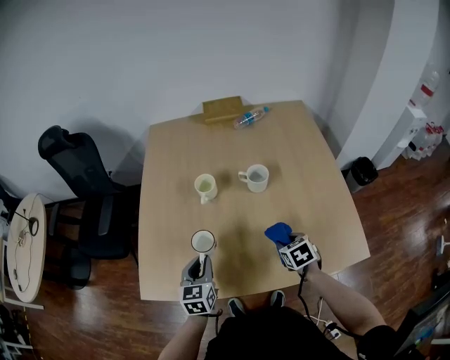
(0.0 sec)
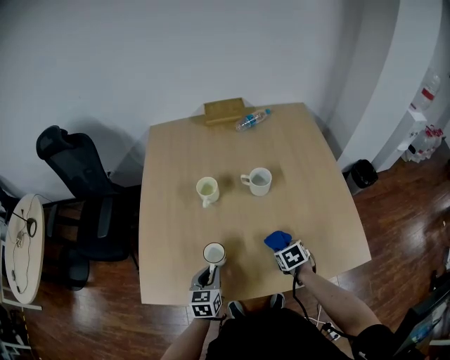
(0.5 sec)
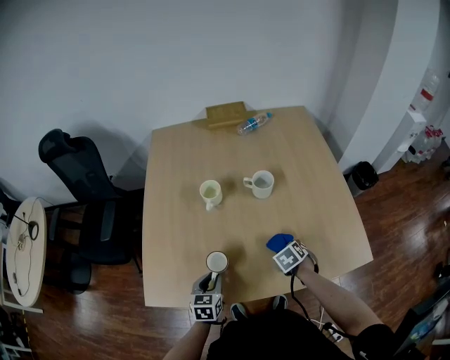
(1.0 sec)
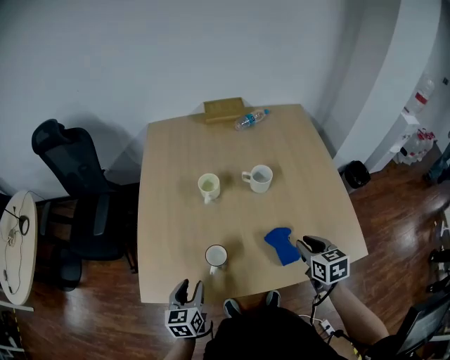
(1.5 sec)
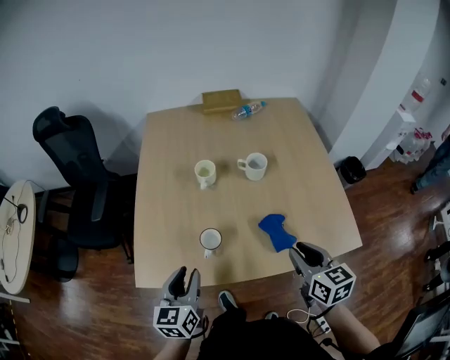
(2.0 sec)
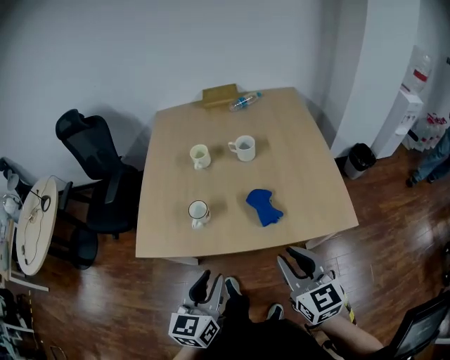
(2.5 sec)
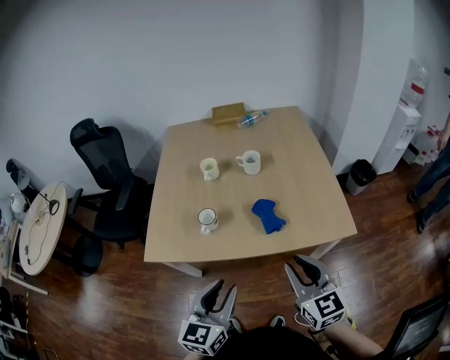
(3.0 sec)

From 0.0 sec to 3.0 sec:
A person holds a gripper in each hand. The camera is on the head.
From 0.0 sec to 1.5 sec: The left gripper moves to the left and backward, some 10 cm, and opens up. The right gripper heads upward, covering roughly 10 cm, and turns by approximately 20 degrees.
From 1.5 sec to 3.0 sec: The right gripper is displaced backward and upward by roughly 30 cm, and points its fingers approximately 30 degrees further upward, while the left gripper heads backward, upward and to the right, covering roughly 35 cm, and swivels about 20 degrees.

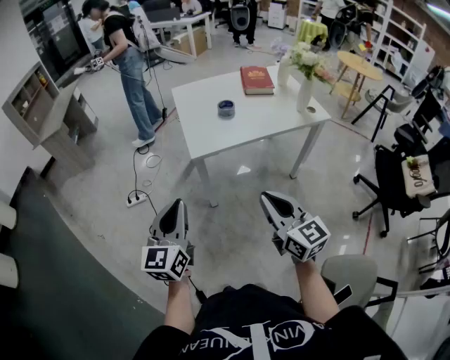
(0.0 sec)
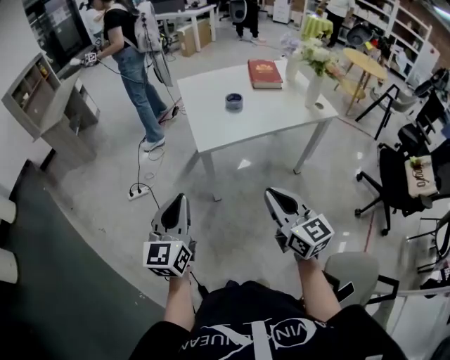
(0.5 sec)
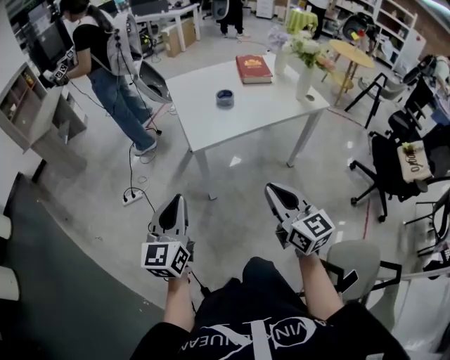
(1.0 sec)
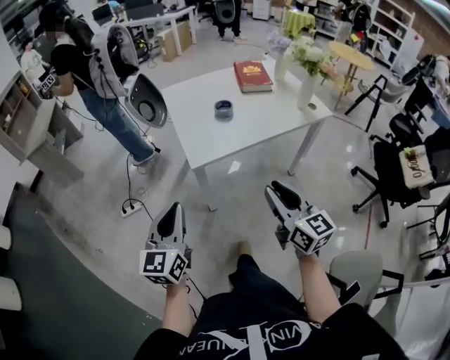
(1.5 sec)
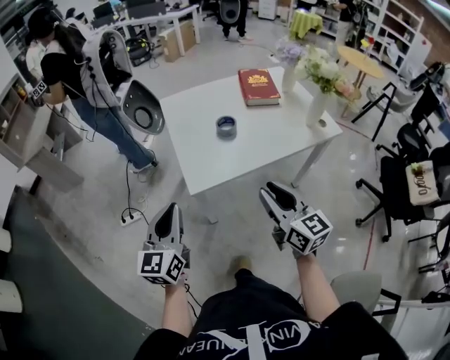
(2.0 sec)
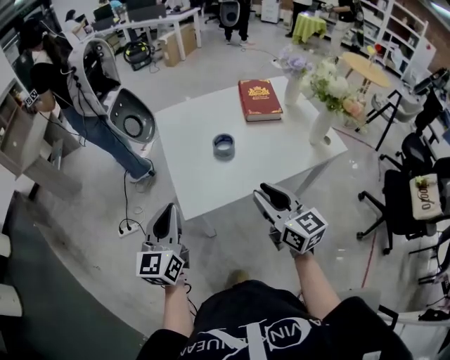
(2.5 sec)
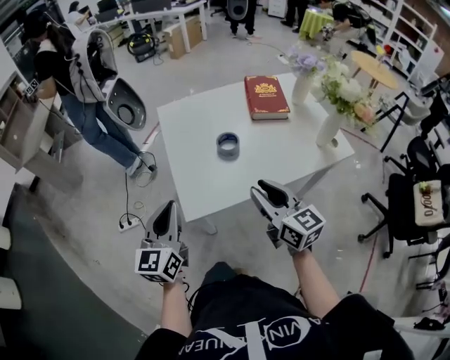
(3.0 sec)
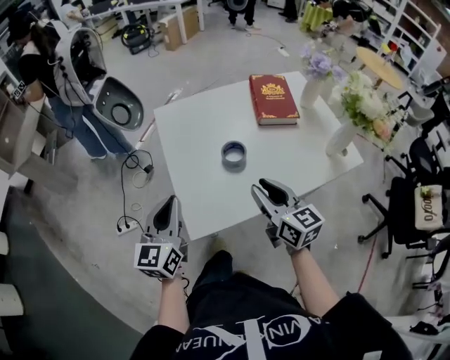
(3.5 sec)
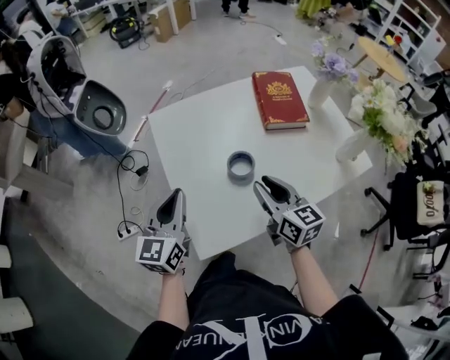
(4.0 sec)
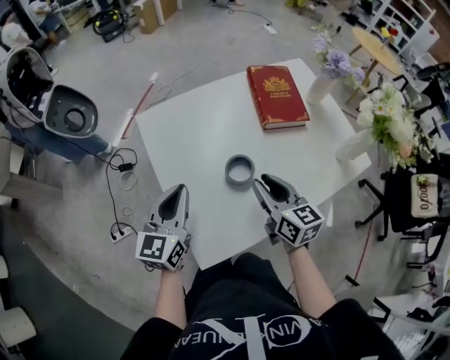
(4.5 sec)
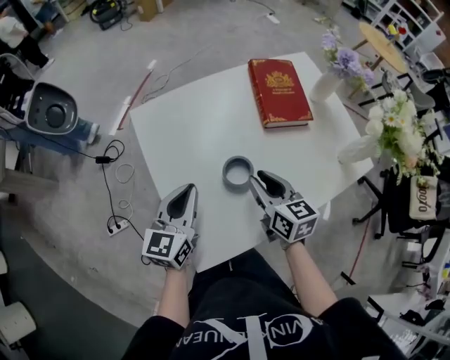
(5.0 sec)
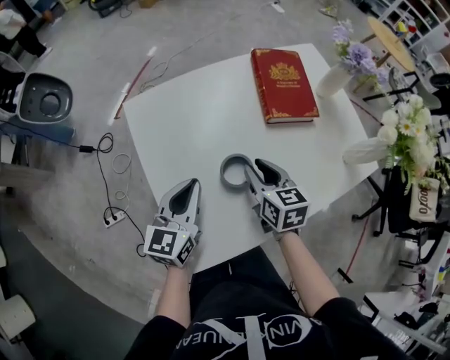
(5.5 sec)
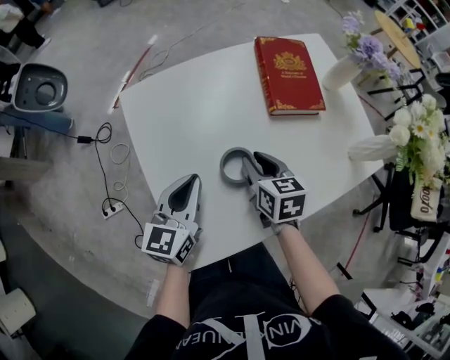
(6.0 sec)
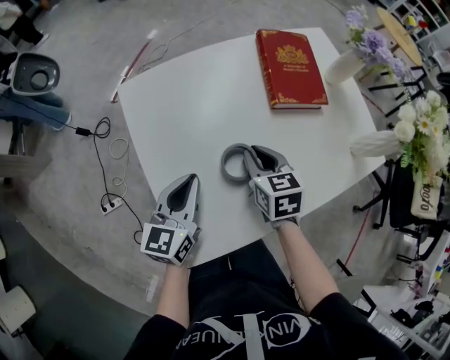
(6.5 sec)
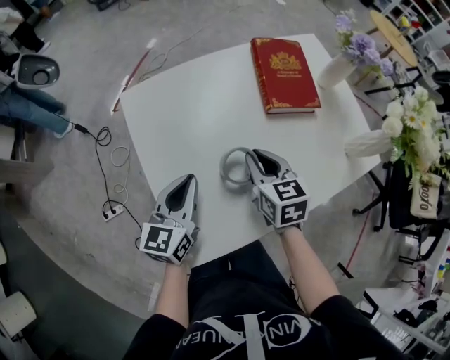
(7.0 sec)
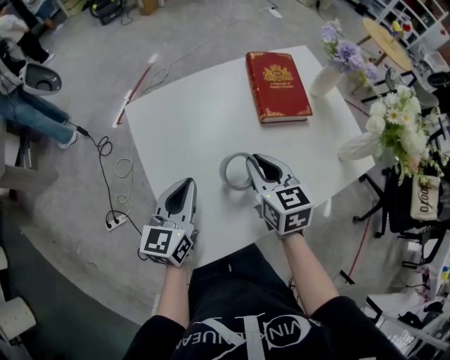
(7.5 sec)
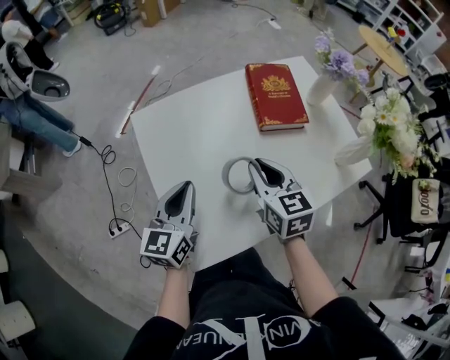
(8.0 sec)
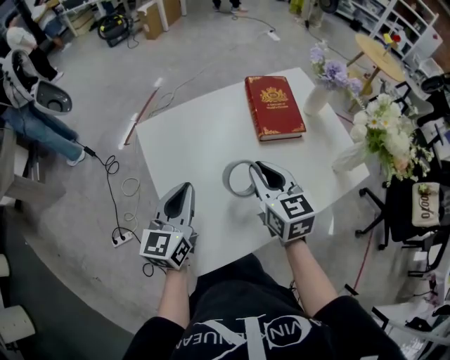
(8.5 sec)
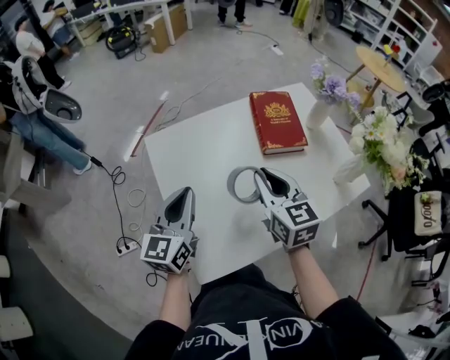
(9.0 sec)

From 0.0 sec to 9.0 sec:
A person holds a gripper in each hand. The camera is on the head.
From 0.0 sec to 2.0 sec: Both grippers travel together forward, some 20 cm. The right gripper opens its fingers.
From 2.0 sec to 4.5 sec: Both grippers move forward, approximately 35 cm.
From 4.5 sec to 7.0 sec: The right gripper shifts roughly 5 cm forward. Meanwhile the left gripper moves downward, about 5 cm.
From 7.0 sec to 9.0 sec: The grippers both shift upward by roughly 10 cm.

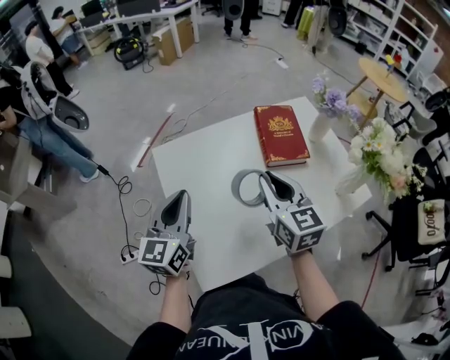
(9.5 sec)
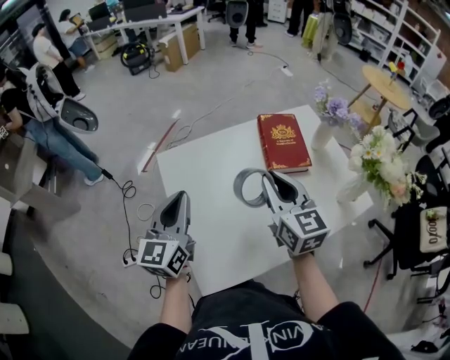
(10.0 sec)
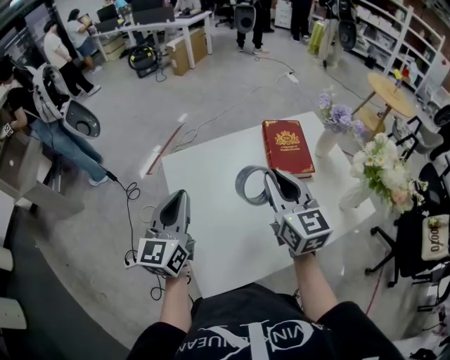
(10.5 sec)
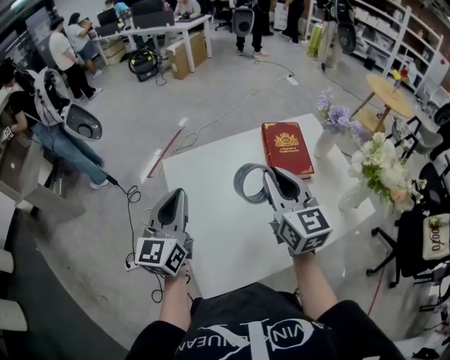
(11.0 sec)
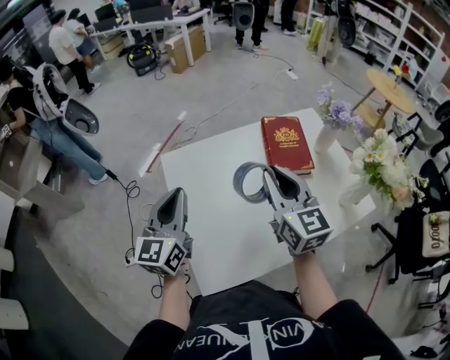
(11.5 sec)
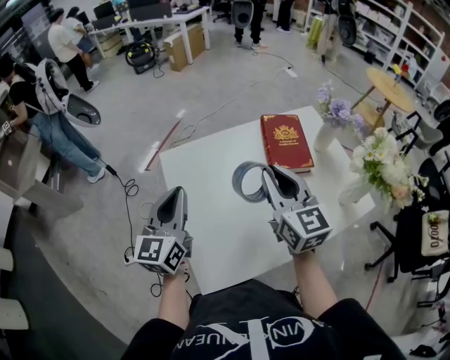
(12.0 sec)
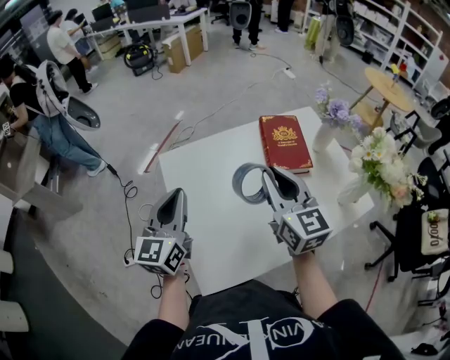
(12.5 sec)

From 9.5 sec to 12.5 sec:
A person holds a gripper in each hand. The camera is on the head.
From 9.5 sec to 11.0 sec: The left gripper moves approximately 5 cm. The right gripper moves upward, approximately 5 cm.
From 11.0 sec to 12.5 sec: The grippers move only a little.

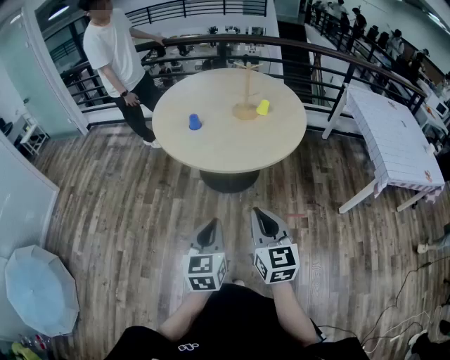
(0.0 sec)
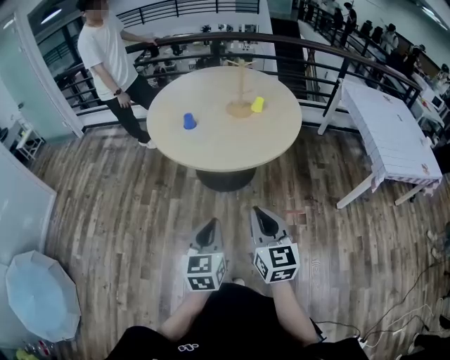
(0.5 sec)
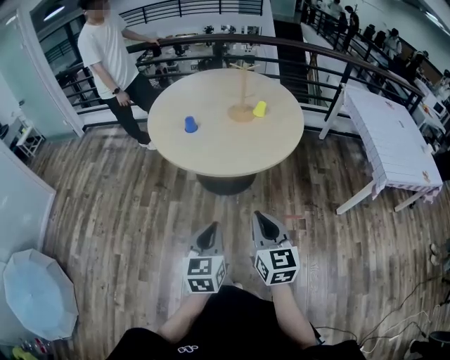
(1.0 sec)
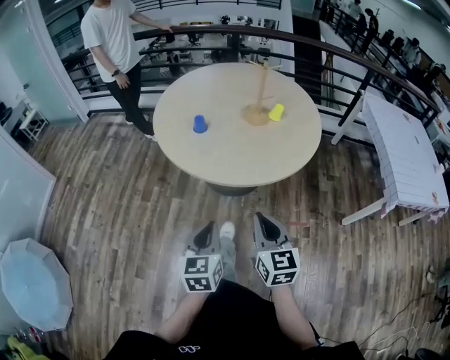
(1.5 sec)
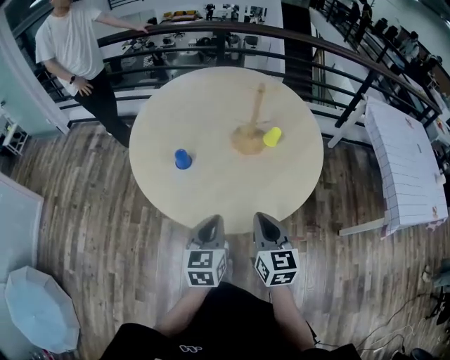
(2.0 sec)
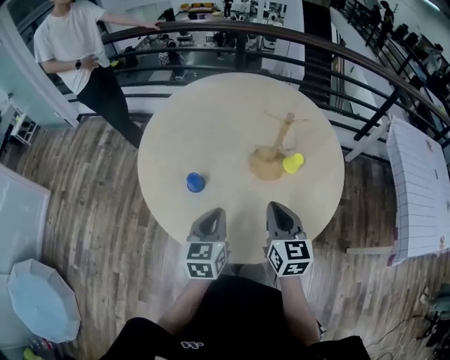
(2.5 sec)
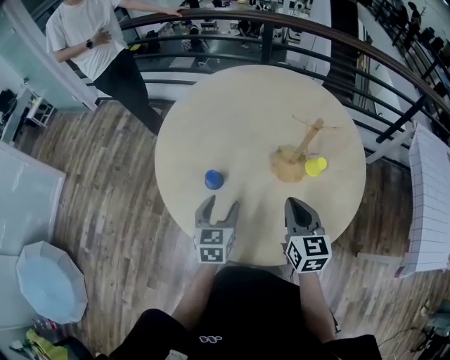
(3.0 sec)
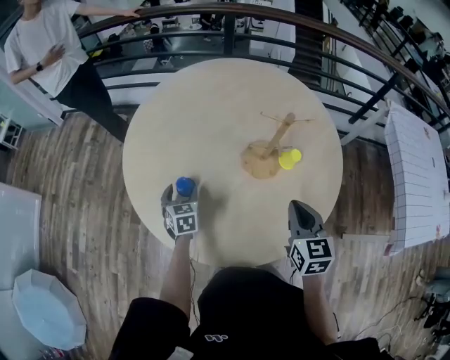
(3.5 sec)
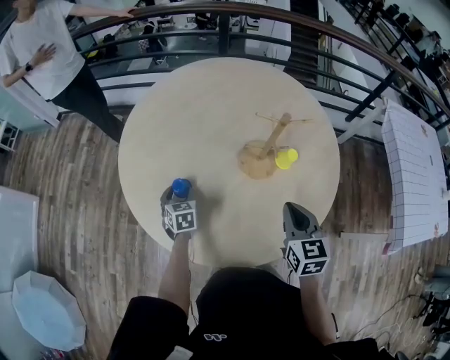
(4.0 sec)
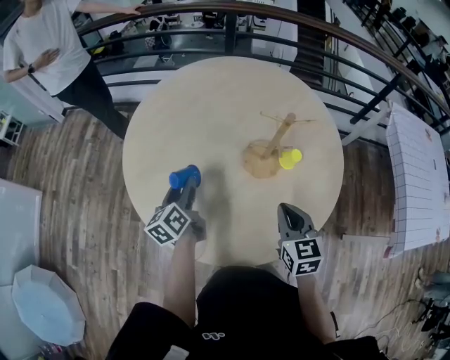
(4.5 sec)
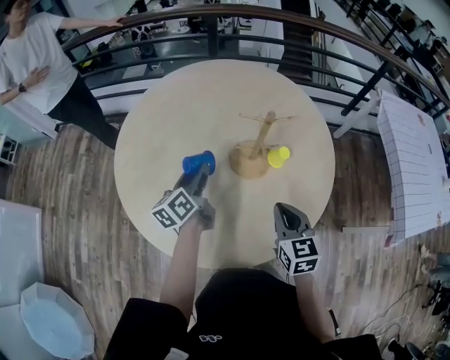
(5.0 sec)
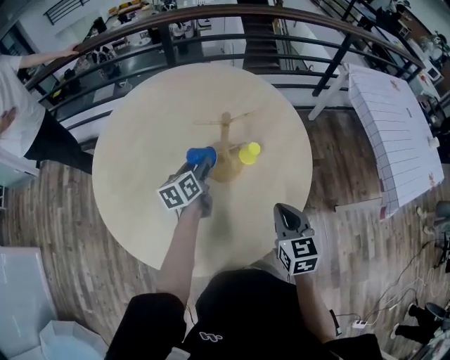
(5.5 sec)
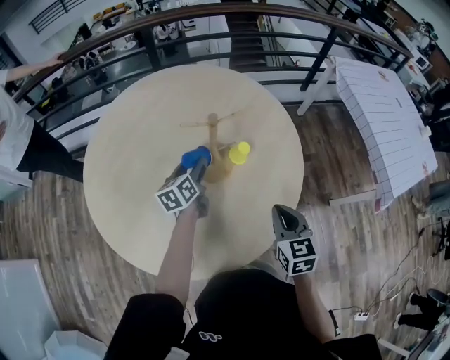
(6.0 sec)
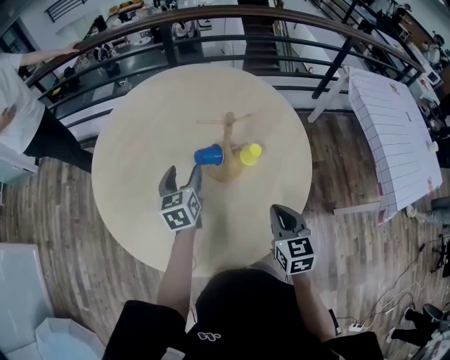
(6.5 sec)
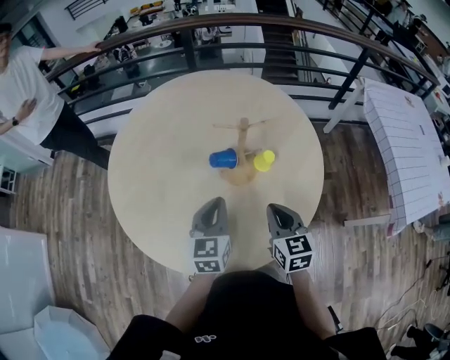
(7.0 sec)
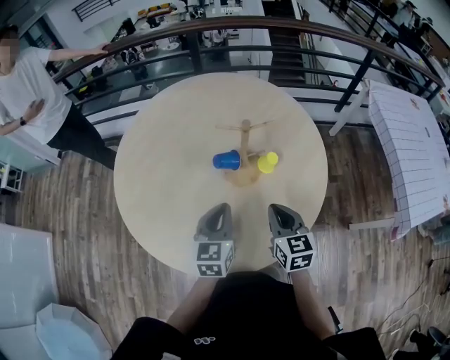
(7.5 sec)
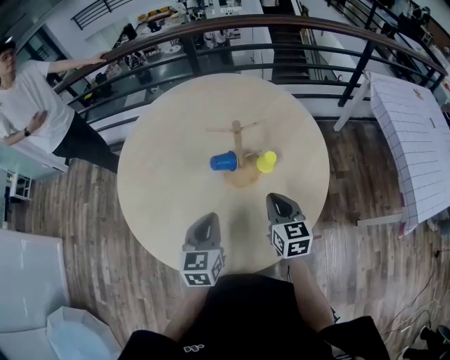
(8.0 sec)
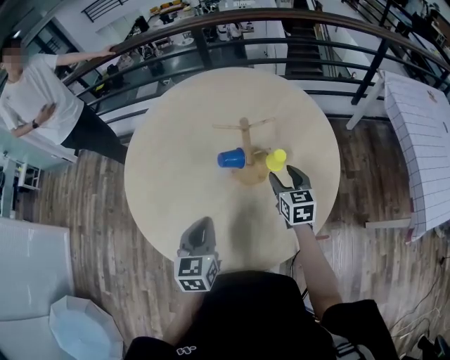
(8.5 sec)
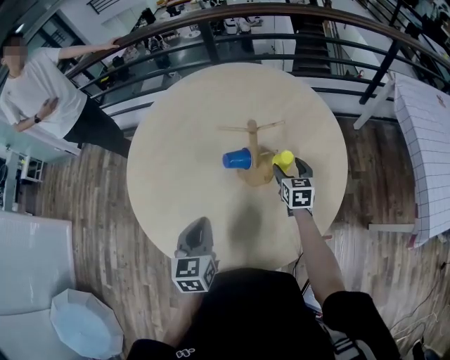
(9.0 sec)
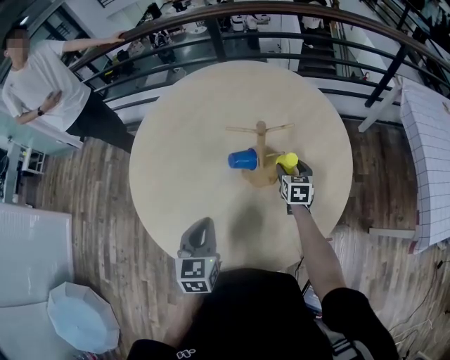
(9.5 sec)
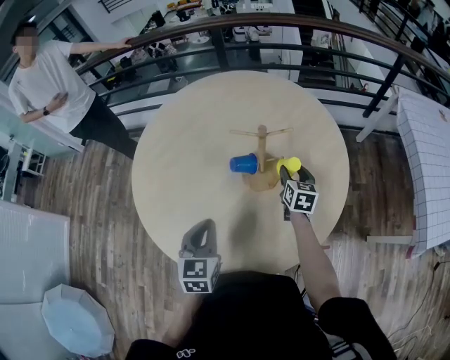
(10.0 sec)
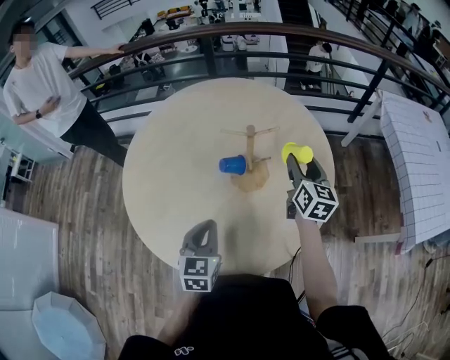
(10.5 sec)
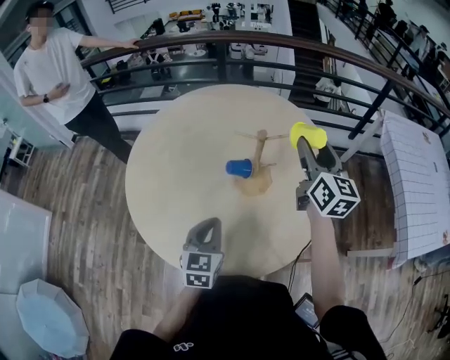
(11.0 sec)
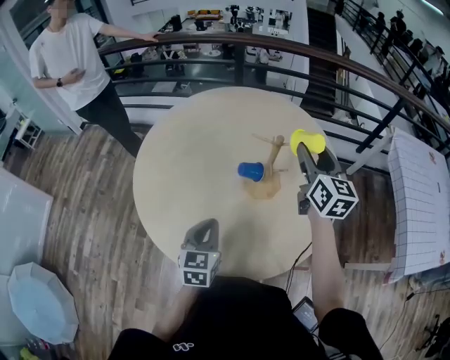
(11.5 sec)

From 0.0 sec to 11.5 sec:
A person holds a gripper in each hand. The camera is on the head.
From 0.0 sec to 2.0 sec: Both grippers move forward, approximately 35 cm.
From 2.0 sec to 4.0 sec: The left gripper goes about 40 cm forward, downward and to the left, rotates some 30 degrees, and opens. The right gripper heads forward, covering approximately 20 cm.
From 4.0 sec to 6.0 sec: The left gripper shifts by about 25 cm, and rotates roughly 40 degrees; the right gripper ends up about 10 cm from where it was.
From 6.0 sec to 7.5 sec: The left gripper shifts roughly 20 cm backward and upward, turns by roughly 30 degrees, and closes its fingers. Meanwhile the right gripper moves to the left, roughly 5 cm.
From 7.5 sec to 9.5 sec: The left gripper heads to the left, covering some 5 cm; the right gripper goes approximately 25 cm forward and downward, and opens its fingers.
From 9.5 sec to 11.5 sec: The right gripper is displaced upward by approximately 30 cm, and tilts its fingers some 30 degrees upward.
